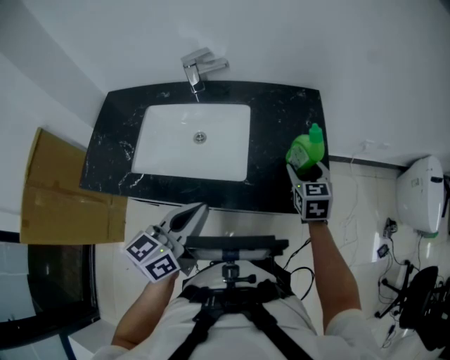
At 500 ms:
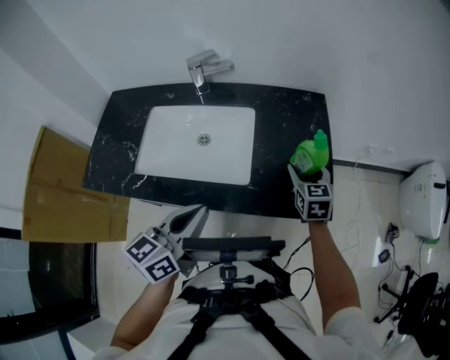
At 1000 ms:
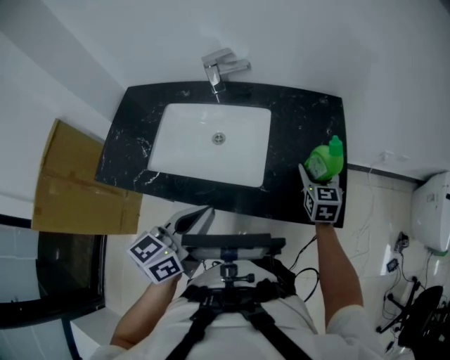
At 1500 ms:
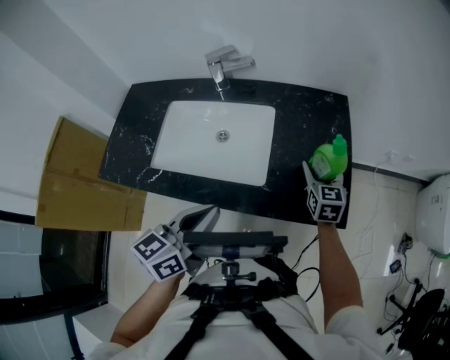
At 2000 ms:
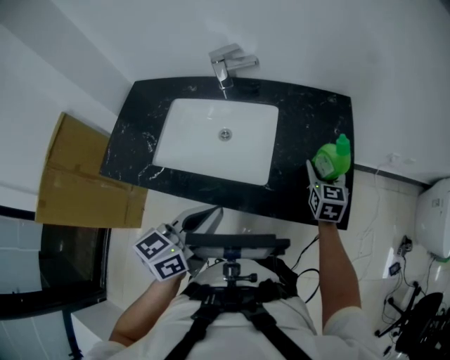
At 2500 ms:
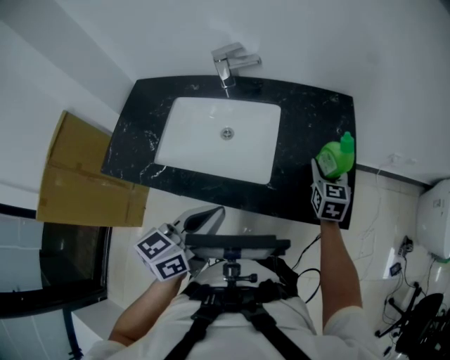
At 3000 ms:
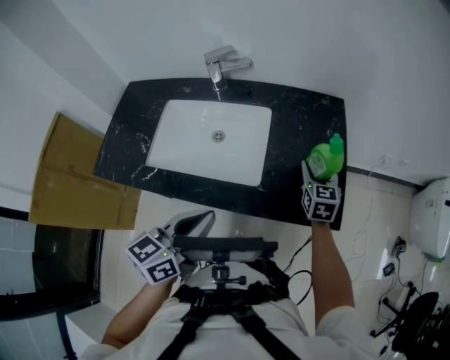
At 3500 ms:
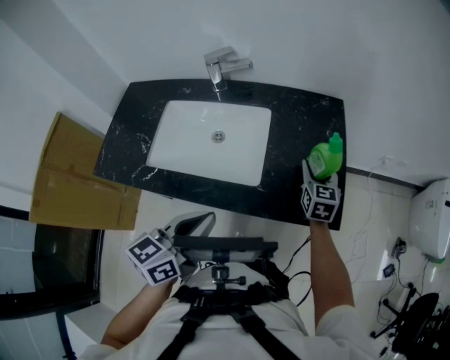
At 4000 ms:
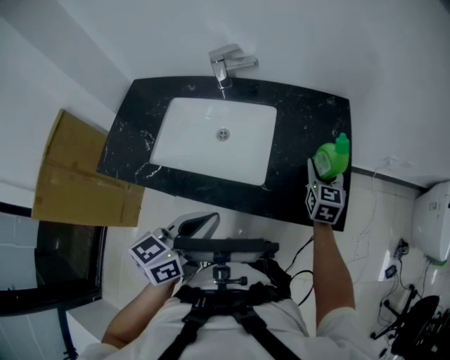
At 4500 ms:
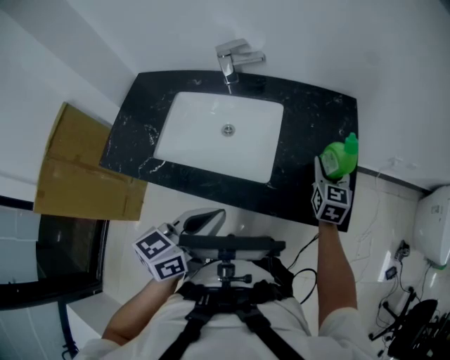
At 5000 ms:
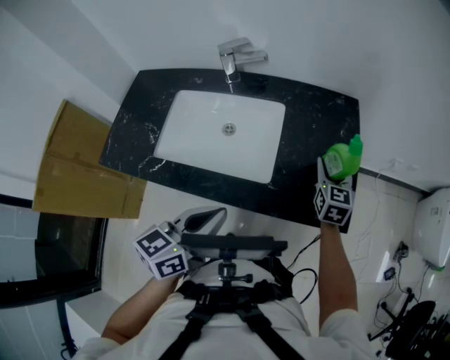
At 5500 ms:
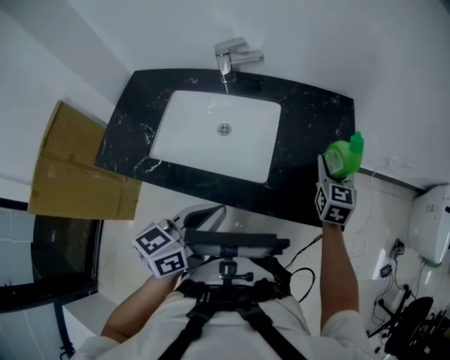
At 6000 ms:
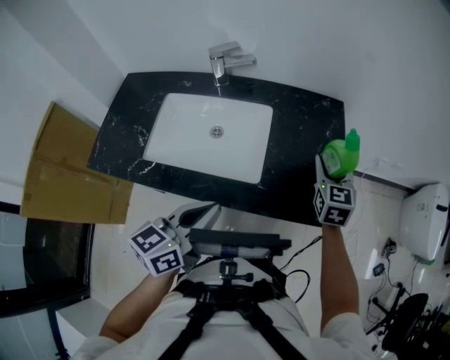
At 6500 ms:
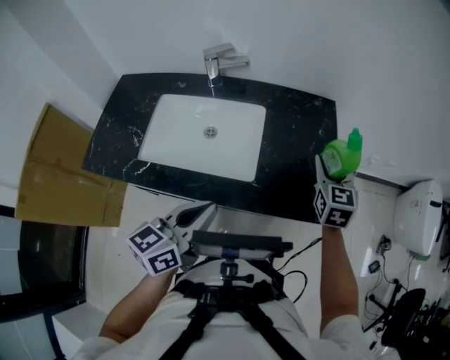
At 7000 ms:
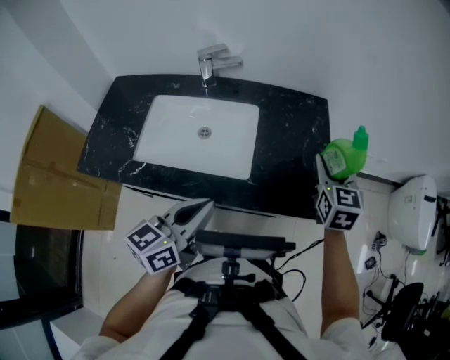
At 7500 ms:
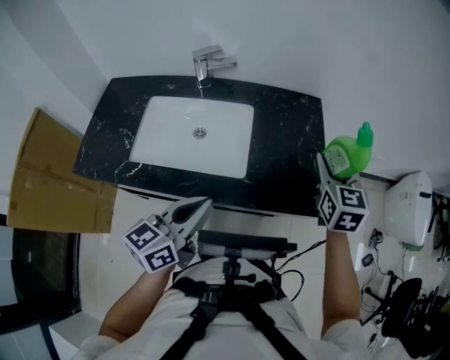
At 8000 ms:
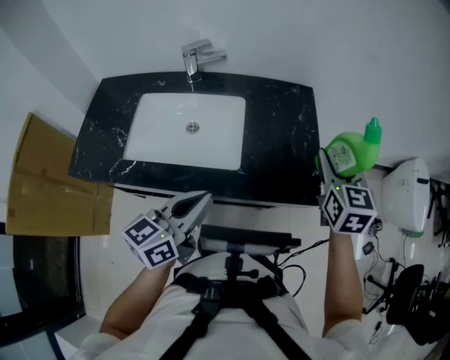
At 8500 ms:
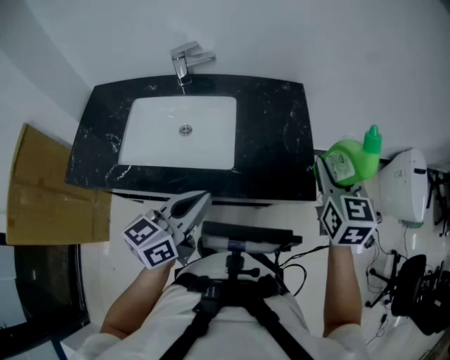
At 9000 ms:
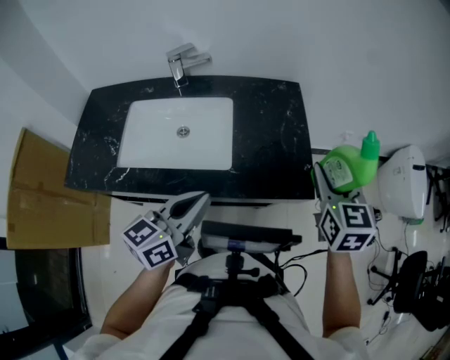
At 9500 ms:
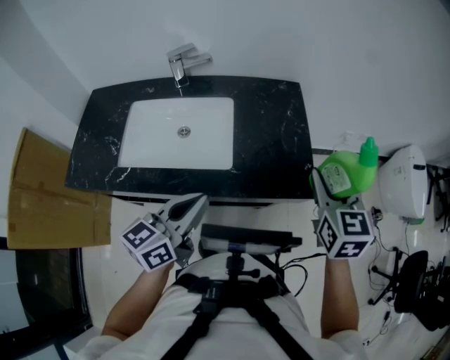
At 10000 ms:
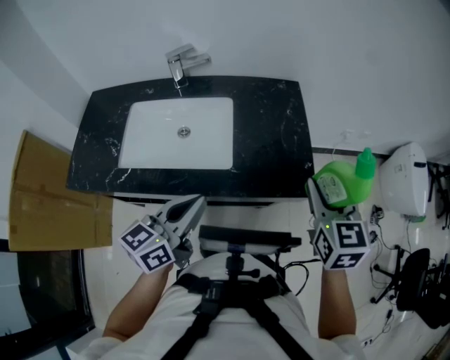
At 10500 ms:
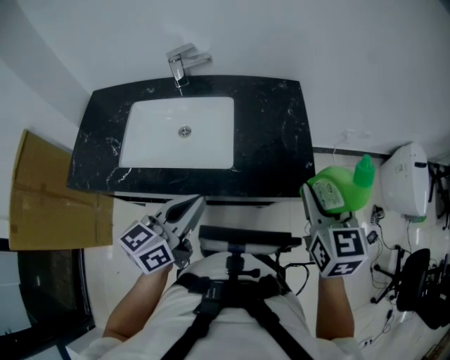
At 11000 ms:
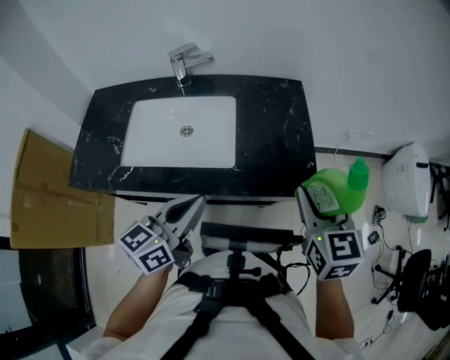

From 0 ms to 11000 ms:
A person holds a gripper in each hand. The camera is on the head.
From 0 ms to 2000 ms: The right gripper changes place by about 5 cm.
From 2000 ms to 5500 ms: The grippers move only a little.
From 5500 ms to 7500 ms: The right gripper travels upward and backward by some 15 cm.
From 7500 ms to 9000 ms: The right gripper is displaced backward by roughly 10 cm.
From 9000 ms to 11000 ms: The right gripper is displaced backward by some 5 cm.

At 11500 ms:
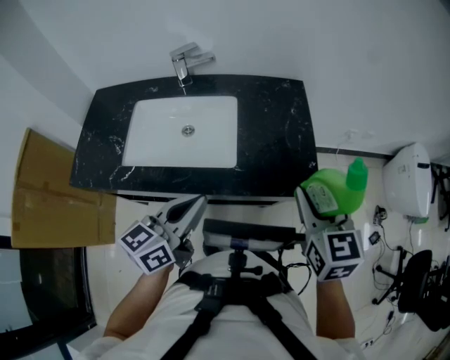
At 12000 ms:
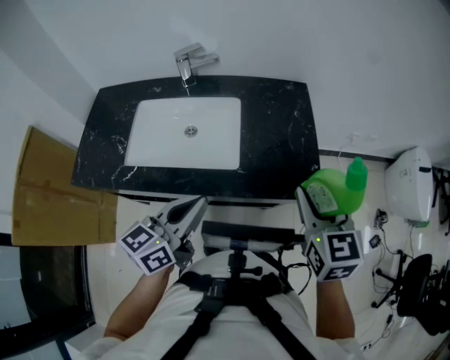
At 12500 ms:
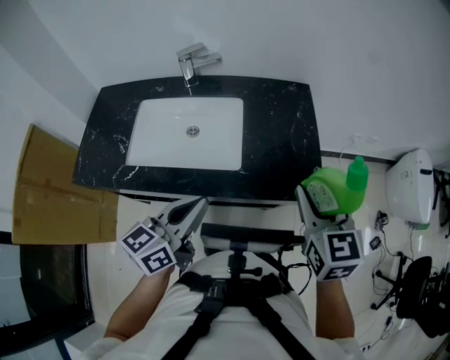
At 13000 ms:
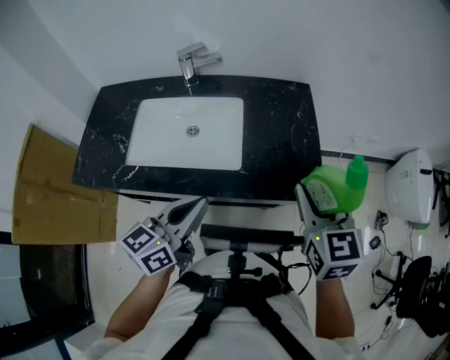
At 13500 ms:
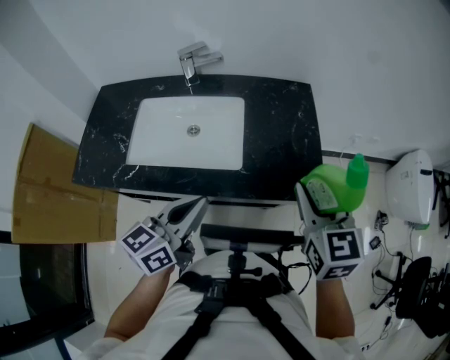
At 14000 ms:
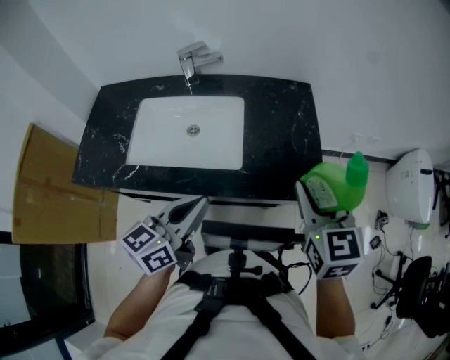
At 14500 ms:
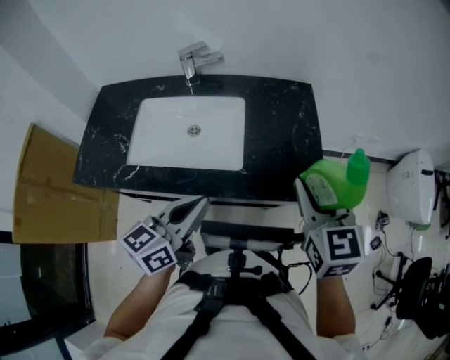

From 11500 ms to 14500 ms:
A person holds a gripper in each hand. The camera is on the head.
From 11500 ms to 14500 ms: The grippers make only small movements.

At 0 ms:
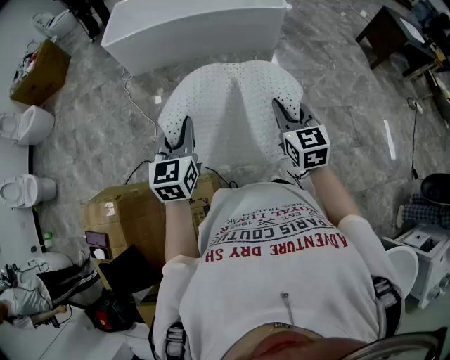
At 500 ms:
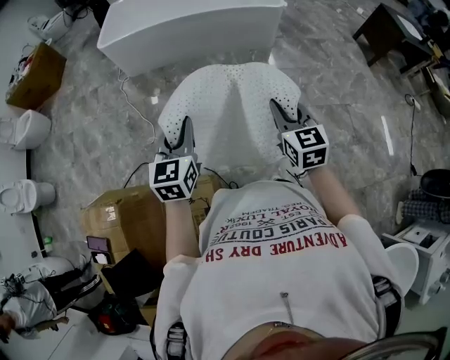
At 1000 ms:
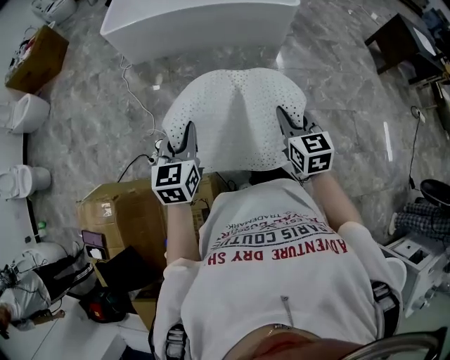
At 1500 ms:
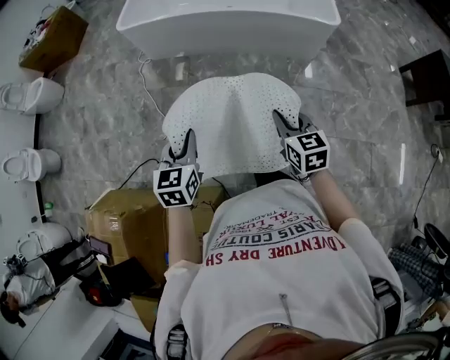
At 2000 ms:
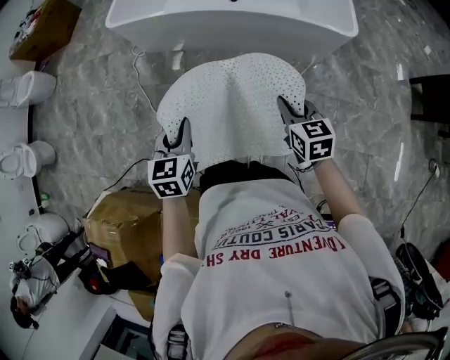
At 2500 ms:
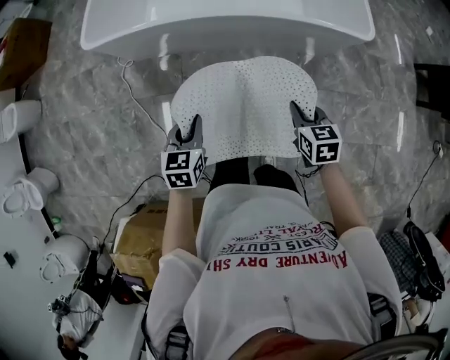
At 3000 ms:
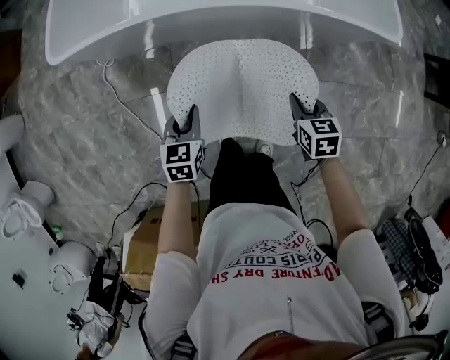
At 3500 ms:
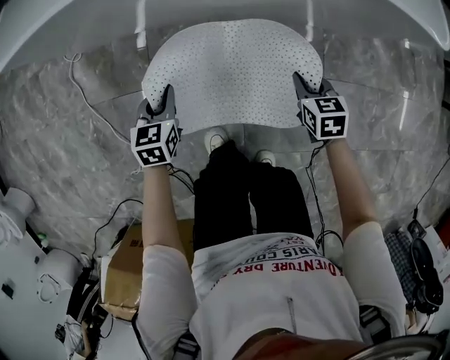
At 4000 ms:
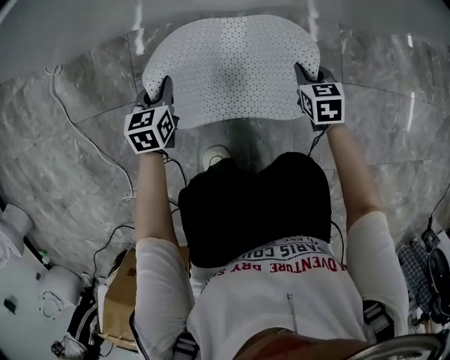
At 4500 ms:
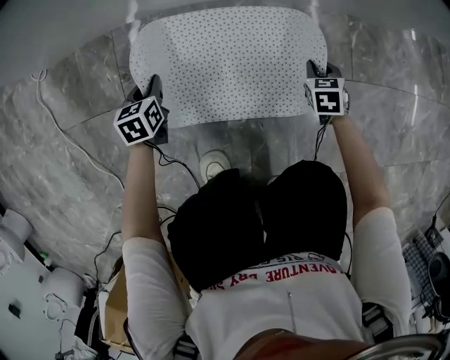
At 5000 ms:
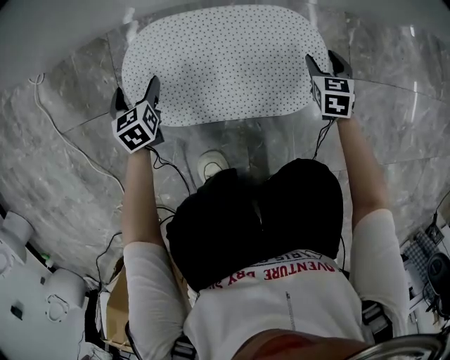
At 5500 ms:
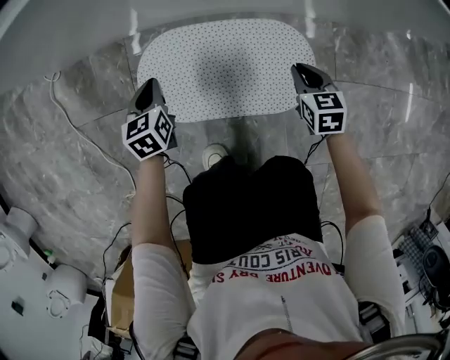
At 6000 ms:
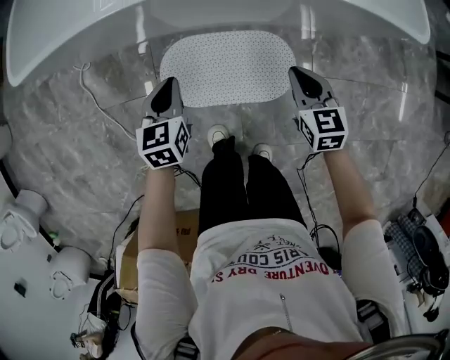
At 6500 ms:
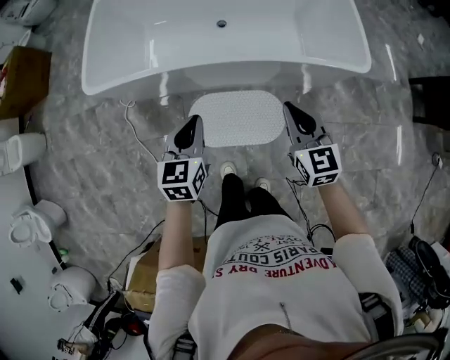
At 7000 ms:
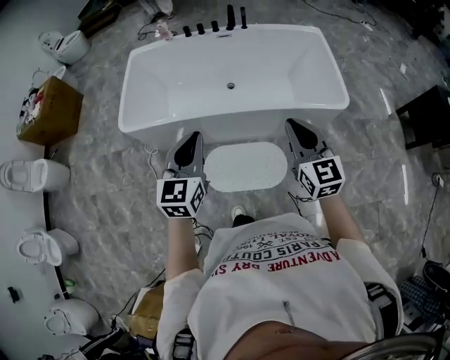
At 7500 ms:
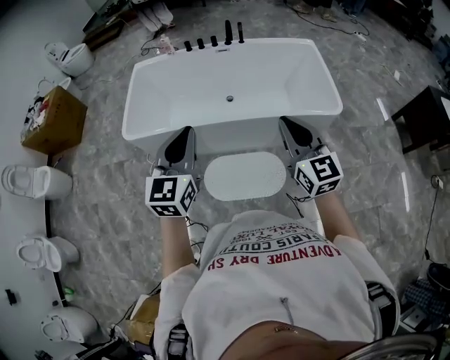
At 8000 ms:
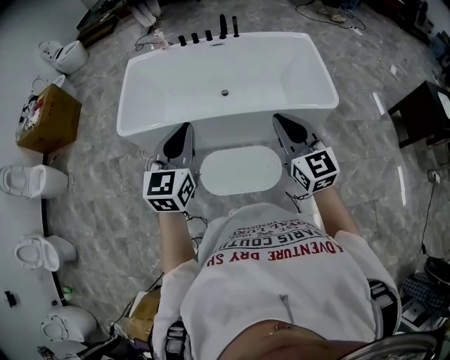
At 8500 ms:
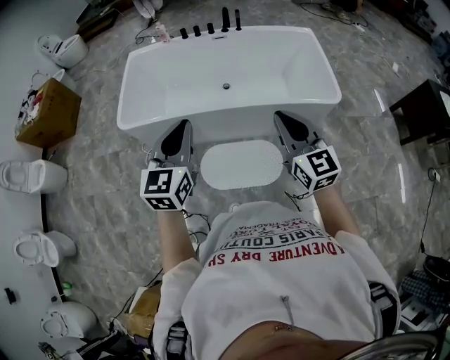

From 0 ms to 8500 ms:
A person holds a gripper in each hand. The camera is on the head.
From 0 ms to 2000 ms: The pair of grippers is taken forward, roughly 40 cm. The left gripper turns by roughly 20 degrees. Meanwhile the right gripper turns by about 20 degrees.
From 2000 ms to 4000 ms: The grippers both shift downward and forward by roughly 80 cm. The right gripper swivels approximately 20 degrees.
From 4000 ms to 6500 ms: Both grippers move upward, approximately 70 cm. The right gripper angles its fingers upward, by about 30 degrees, and opens, then closes again. Meanwhile the left gripper opens, then closes again.
From 6500 ms to 8500 ms: The right gripper moves upward and backward, roughly 25 cm; the left gripper moves upward, some 25 cm, and changes its angle by roughly 20 degrees.

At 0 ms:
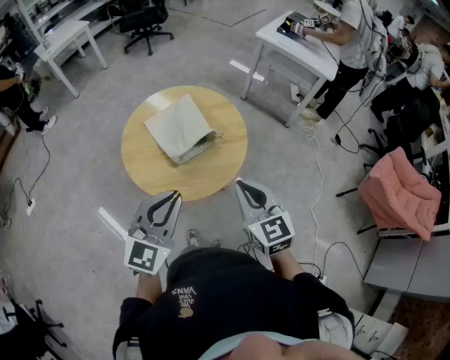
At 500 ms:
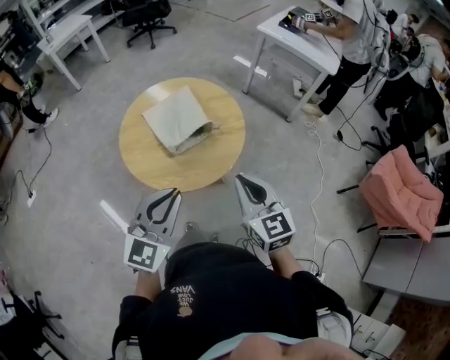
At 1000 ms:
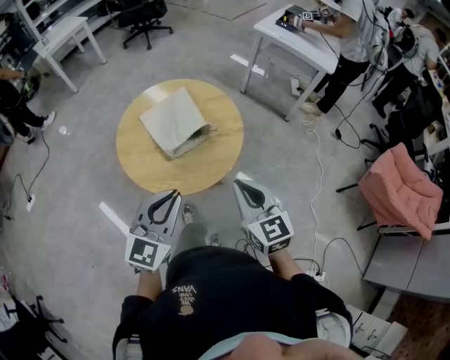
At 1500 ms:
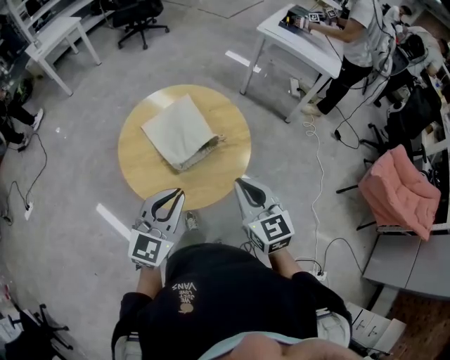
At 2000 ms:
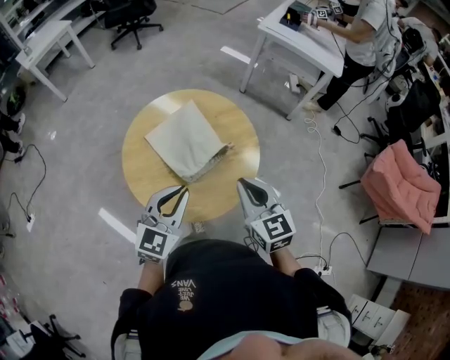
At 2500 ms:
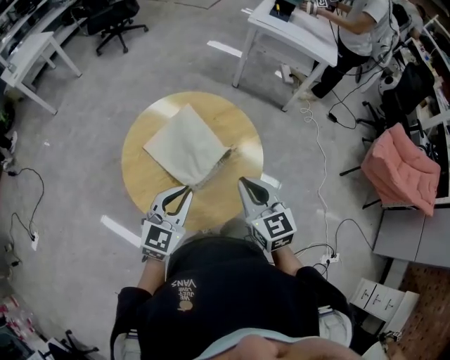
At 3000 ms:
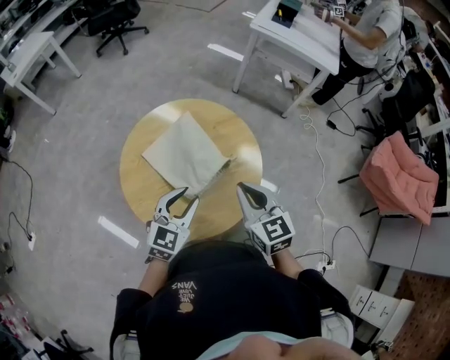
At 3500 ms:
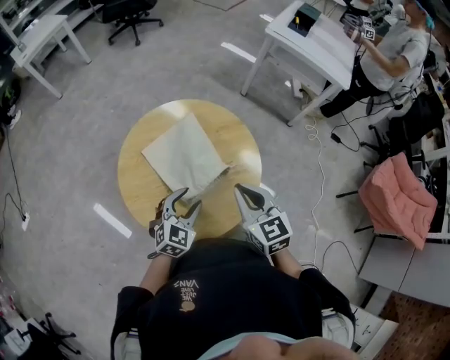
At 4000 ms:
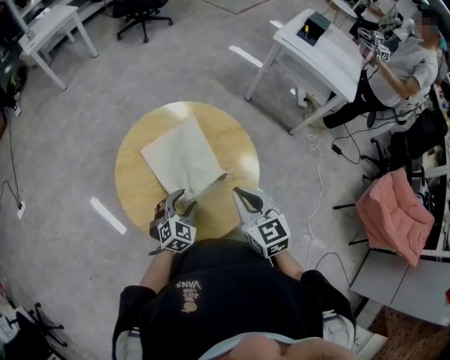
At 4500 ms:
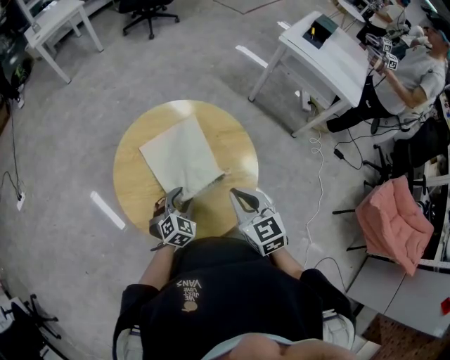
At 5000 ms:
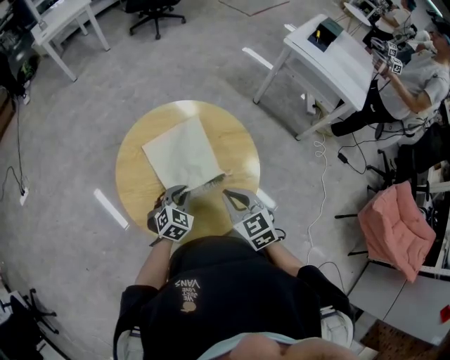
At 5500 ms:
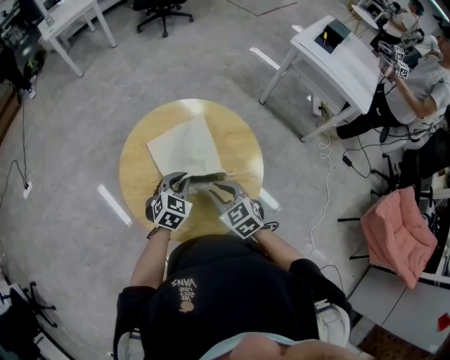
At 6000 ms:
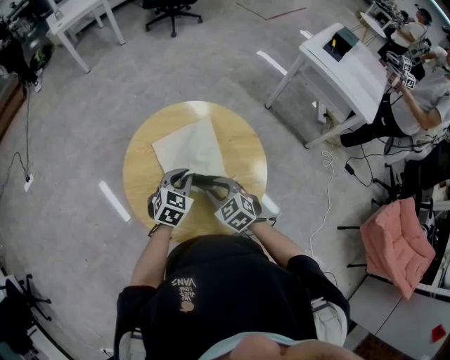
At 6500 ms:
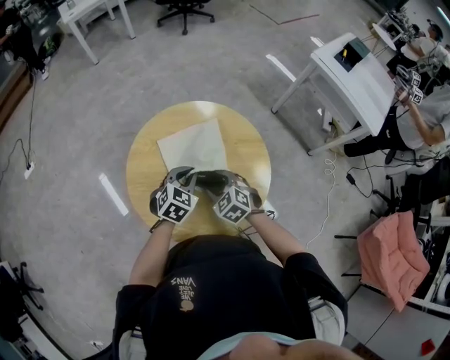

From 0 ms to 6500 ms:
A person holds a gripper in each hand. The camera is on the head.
From 0 ms to 2000 ms: The left gripper moves forward, downward and to the left, approximately 20 cm, while the right gripper moves forward and to the left, some 15 cm.
From 2000 ms to 4500 ms: The left gripper shifts approximately 25 cm downward and forward, rotates roughly 30 degrees, and opens up; the right gripper goes about 15 cm forward and downward.
From 4500 ms to 6500 ms: The left gripper shifts roughly 10 cm forward and upward, and closes its fingers; the right gripper moves downward, to the left and forward, about 20 cm, changes its angle by about 40 degrees, and opens up.
